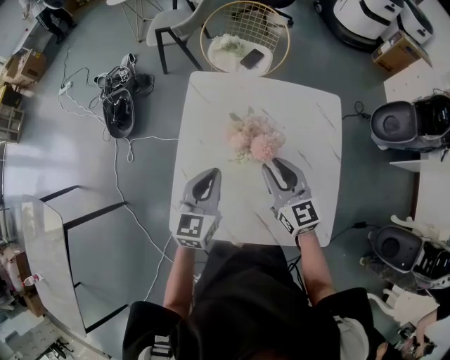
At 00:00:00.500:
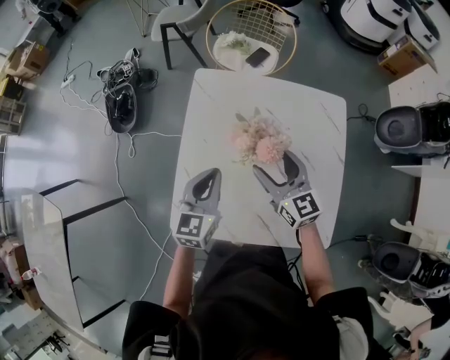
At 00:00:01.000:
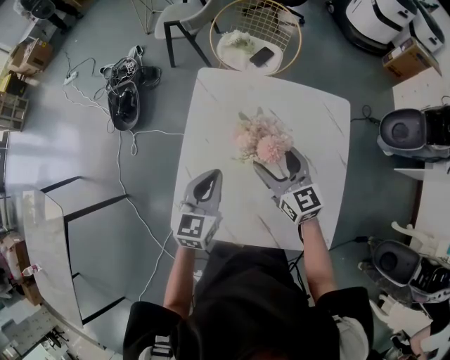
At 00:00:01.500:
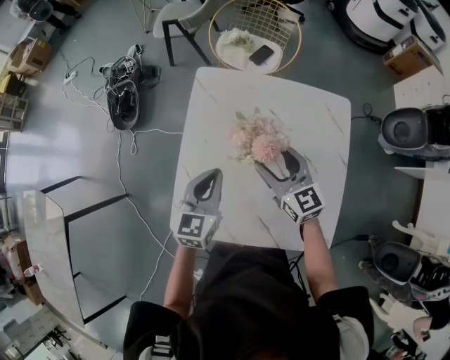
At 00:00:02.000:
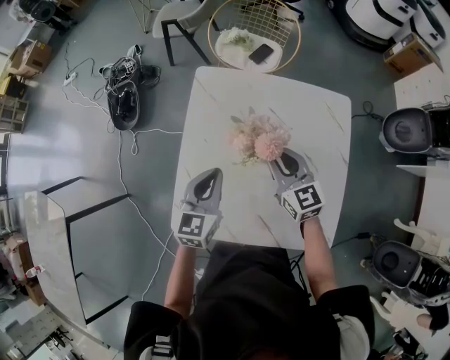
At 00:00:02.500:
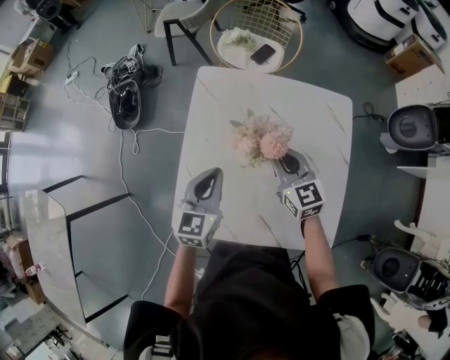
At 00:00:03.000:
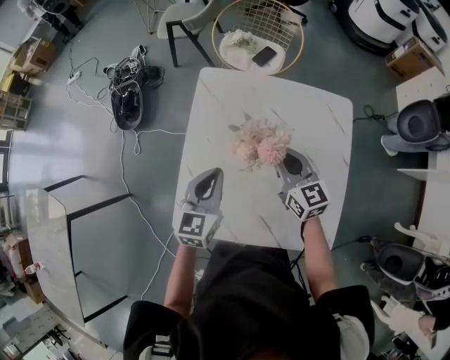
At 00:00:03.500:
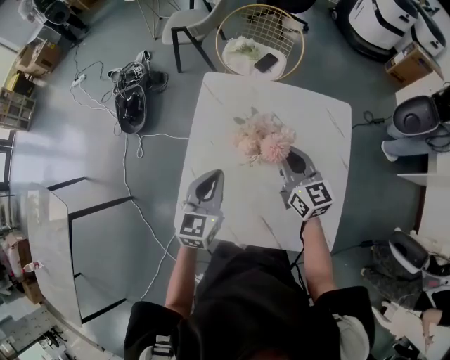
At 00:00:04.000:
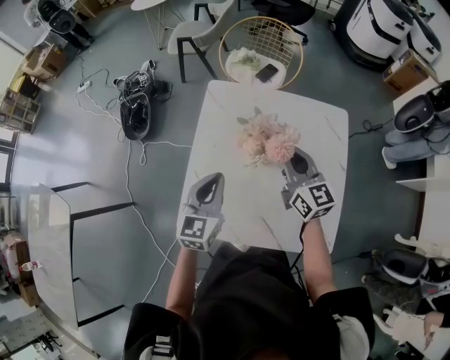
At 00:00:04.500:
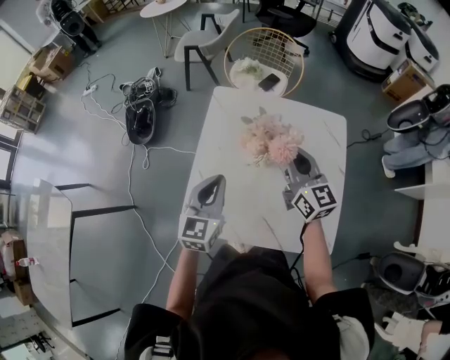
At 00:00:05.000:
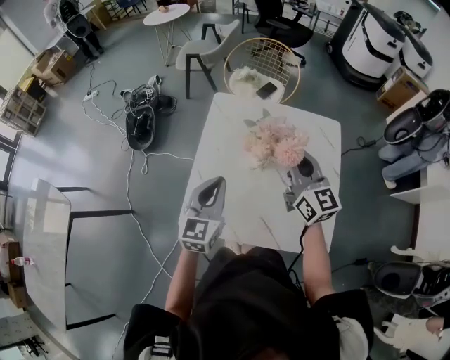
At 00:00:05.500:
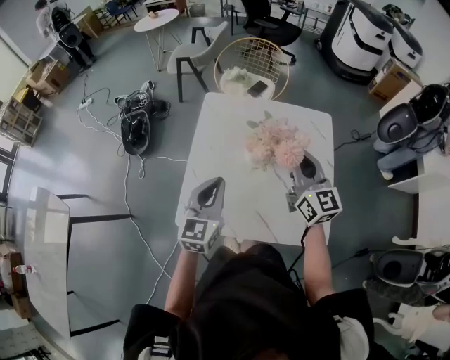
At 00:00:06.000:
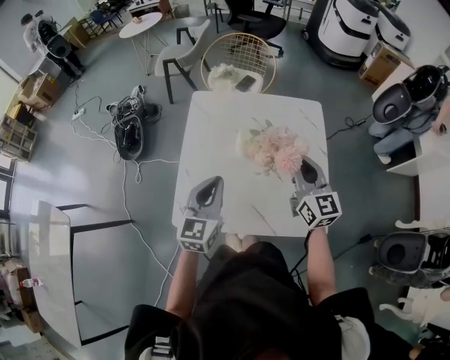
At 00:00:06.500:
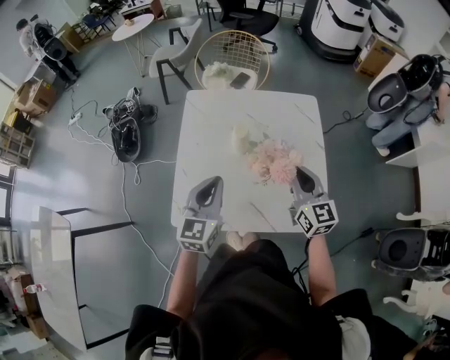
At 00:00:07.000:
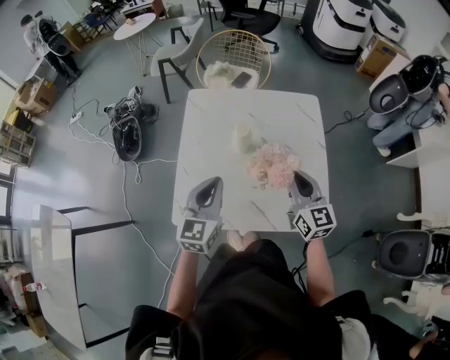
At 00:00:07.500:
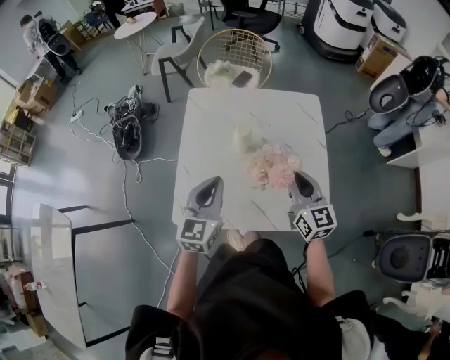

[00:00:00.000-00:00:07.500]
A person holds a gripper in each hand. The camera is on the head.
00:00:00.000 to 00:00:02.000: The right gripper is displaced forward by about 5 cm, and opens and closes again.
00:00:02.000 to 00:00:04.000: The right gripper heads upward, covering roughly 10 cm; the left gripper ends up approximately 5 cm from where it was.
00:00:04.000 to 00:00:05.500: The left gripper goes about 10 cm backward, while the right gripper shifts about 10 cm backward and upward.
00:00:05.500 to 00:00:07.500: The right gripper travels downward, backward and to the right by some 15 cm.

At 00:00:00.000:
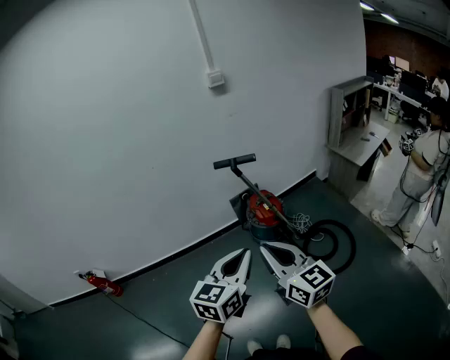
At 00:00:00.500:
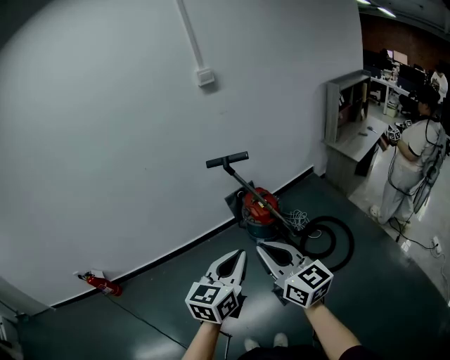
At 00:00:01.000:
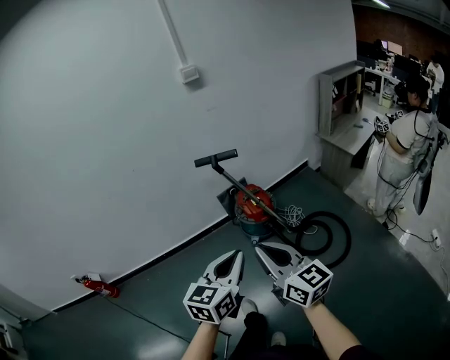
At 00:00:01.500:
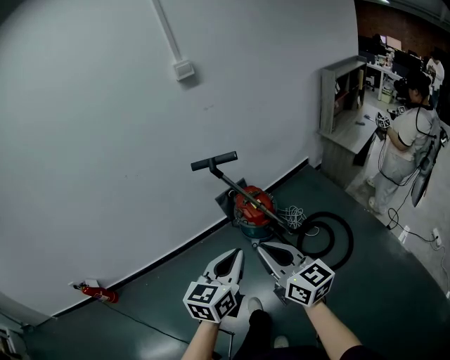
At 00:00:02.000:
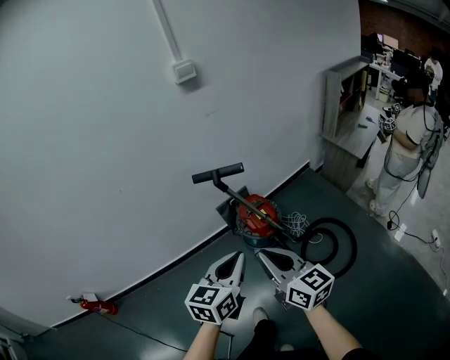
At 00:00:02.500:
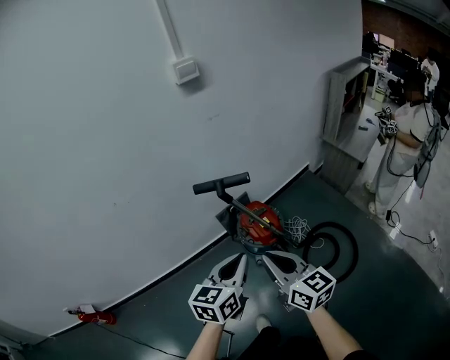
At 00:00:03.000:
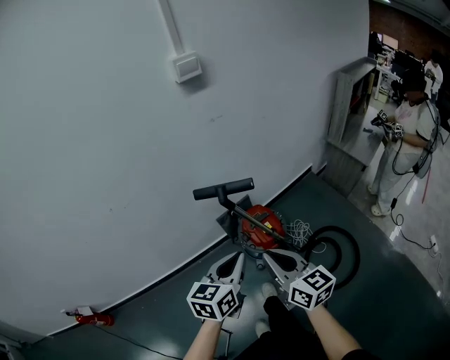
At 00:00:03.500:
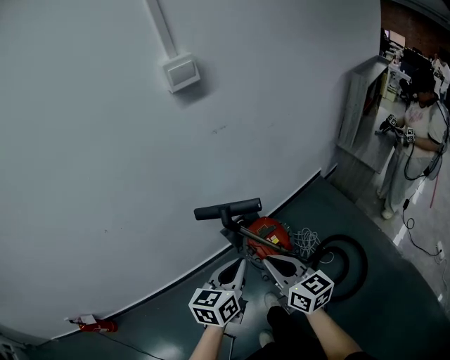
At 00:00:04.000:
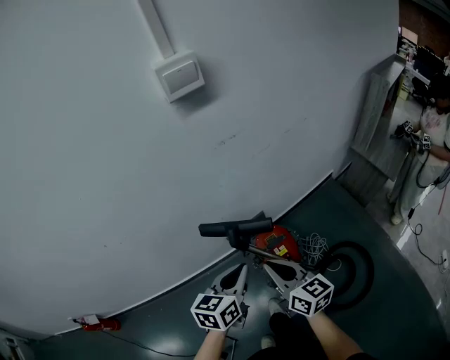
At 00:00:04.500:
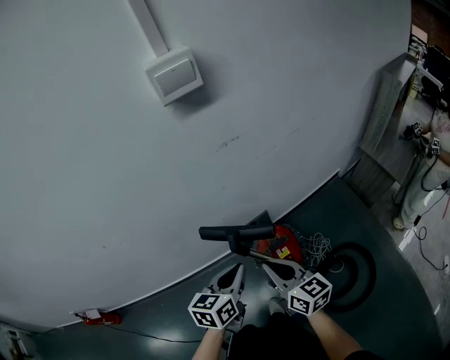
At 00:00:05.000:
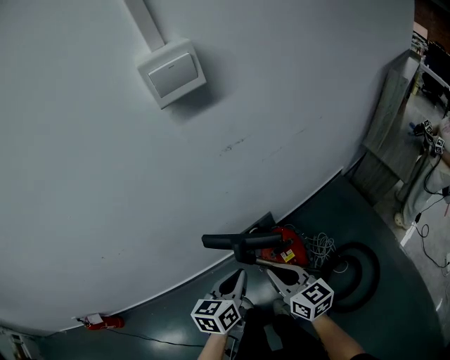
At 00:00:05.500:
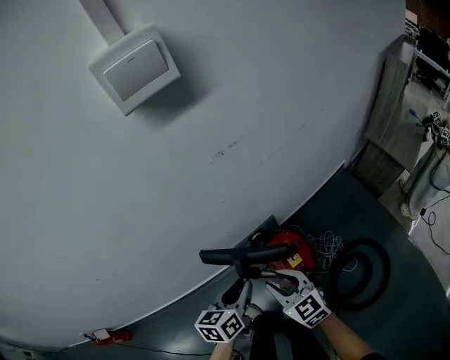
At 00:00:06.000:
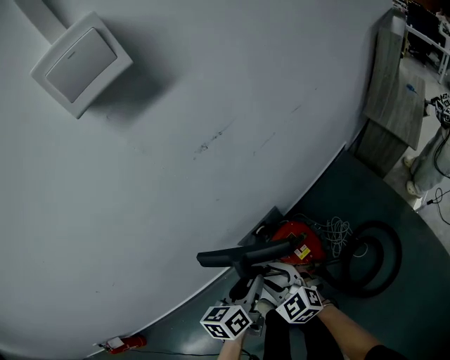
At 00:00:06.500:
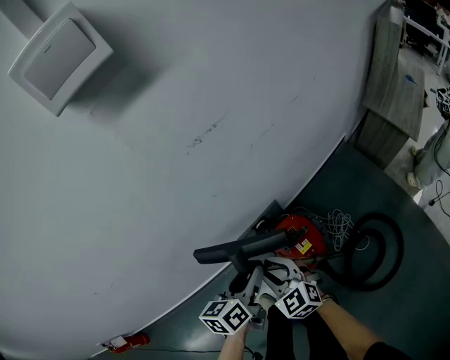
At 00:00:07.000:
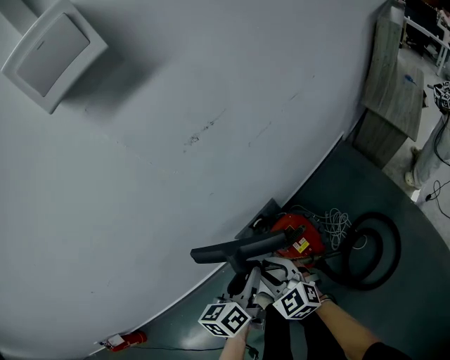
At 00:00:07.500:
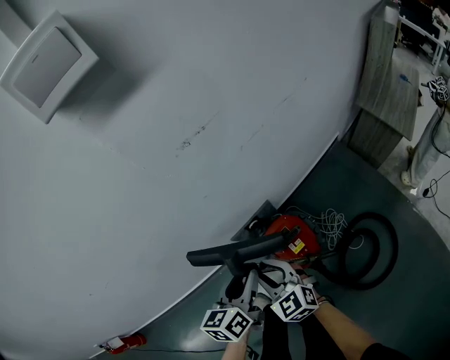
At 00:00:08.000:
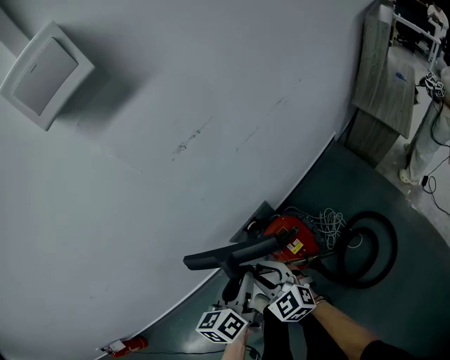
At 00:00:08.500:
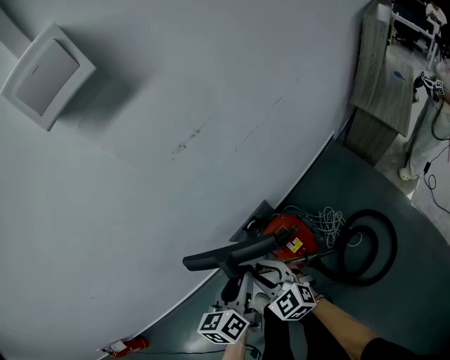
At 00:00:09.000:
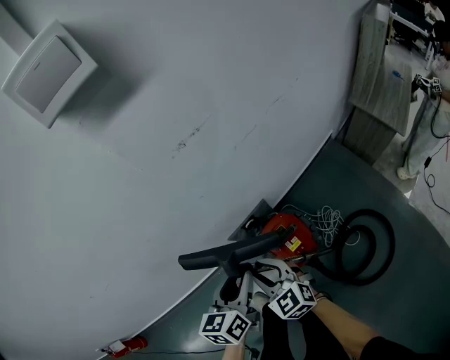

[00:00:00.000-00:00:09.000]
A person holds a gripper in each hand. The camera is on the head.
00:00:00.000 to 00:00:02.000: Both grippers move forward, some 20 cm.
00:00:02.000 to 00:00:04.500: Both grippers travel together forward, roughly 35 cm.
00:00:04.500 to 00:00:07.000: The grippers both shift downward and forward by approximately 15 cm. The right gripper rotates roughly 40 degrees, and opens up; the left gripper opens its fingers.
00:00:07.000 to 00:00:09.000: There are only small adjustments of the grippers.

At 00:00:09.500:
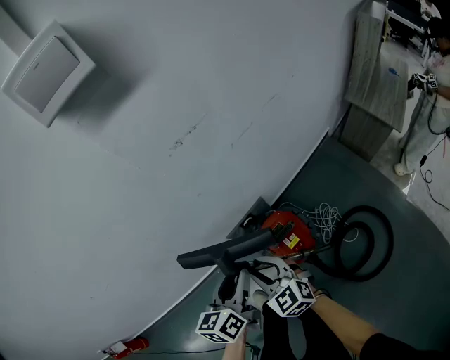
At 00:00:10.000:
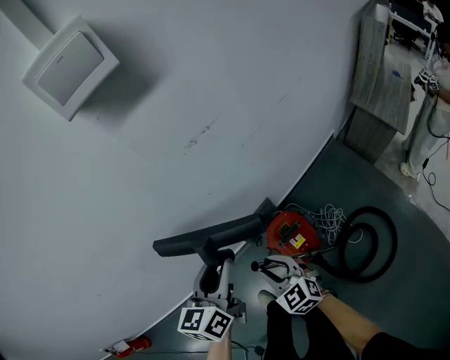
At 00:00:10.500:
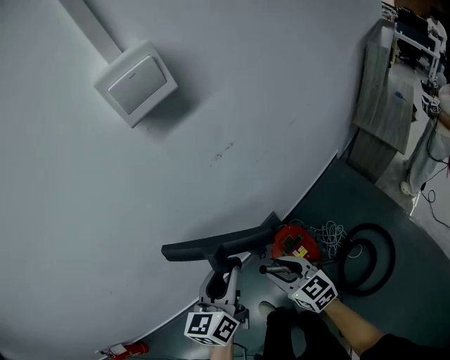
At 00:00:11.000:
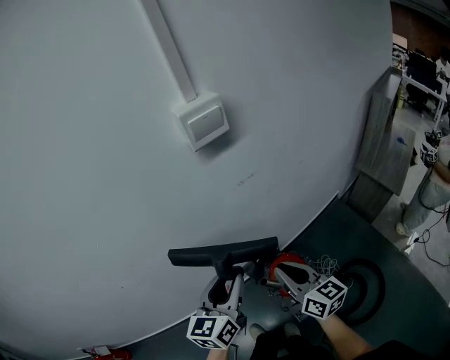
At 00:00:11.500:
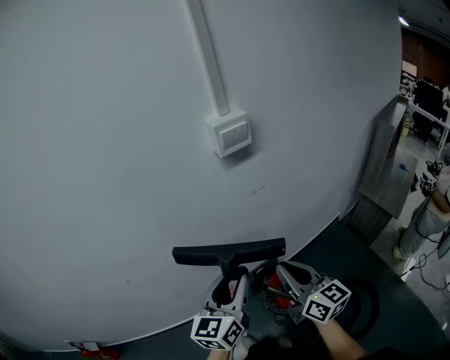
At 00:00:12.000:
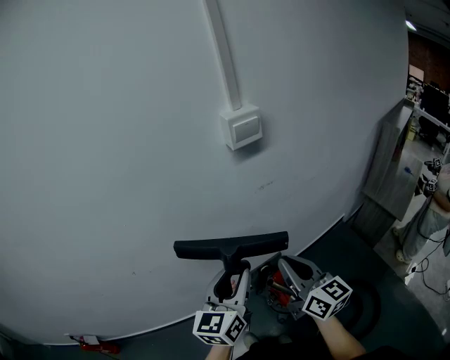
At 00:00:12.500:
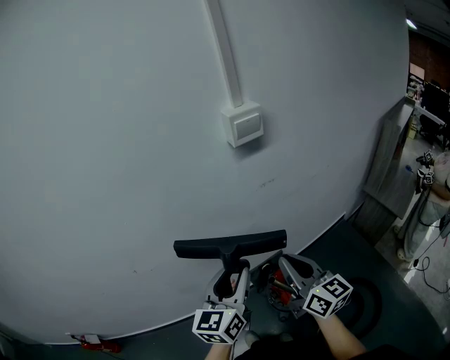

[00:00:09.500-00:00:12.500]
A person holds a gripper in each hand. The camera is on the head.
00:00:09.500 to 00:00:11.000: The two grippers go roughly 20 cm upward. The right gripper changes its angle by about 40 degrees, and closes; the left gripper swivels about 20 degrees.
00:00:11.000 to 00:00:12.500: The right gripper is displaced upward by about 10 cm, while the left gripper is displaced upward by some 5 cm.

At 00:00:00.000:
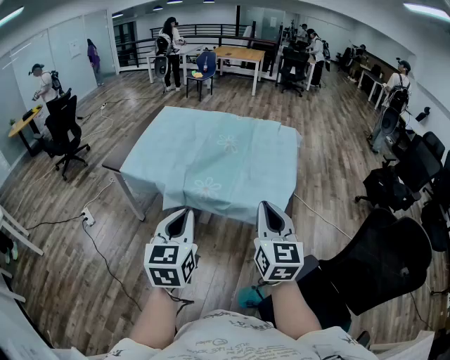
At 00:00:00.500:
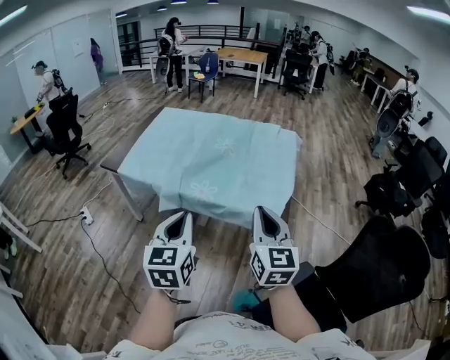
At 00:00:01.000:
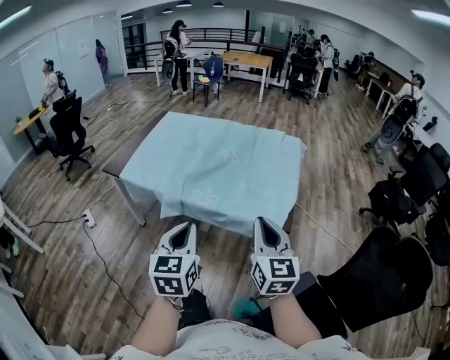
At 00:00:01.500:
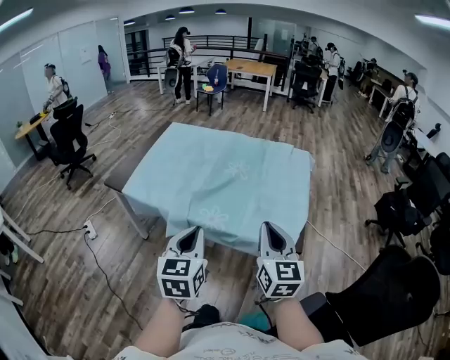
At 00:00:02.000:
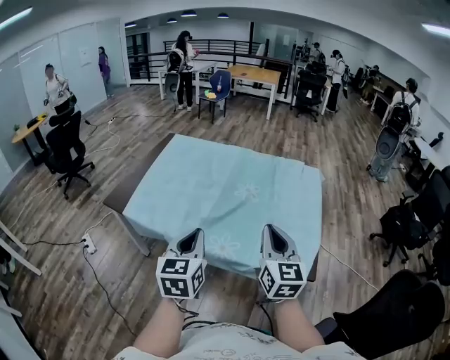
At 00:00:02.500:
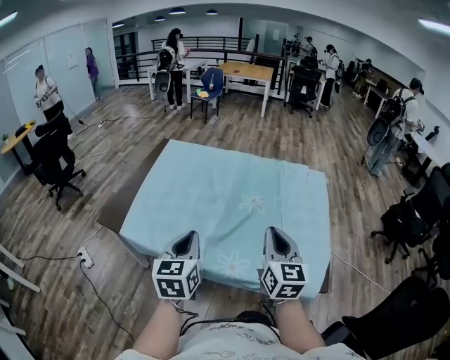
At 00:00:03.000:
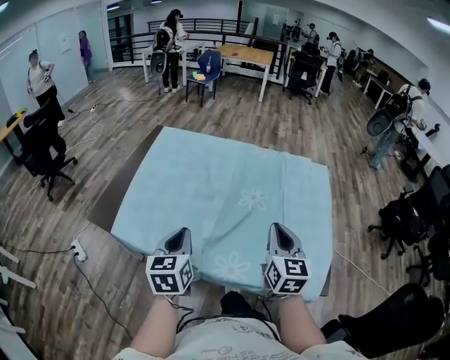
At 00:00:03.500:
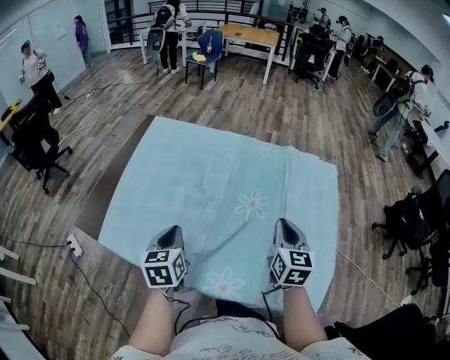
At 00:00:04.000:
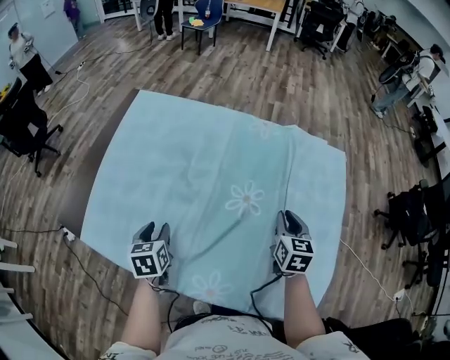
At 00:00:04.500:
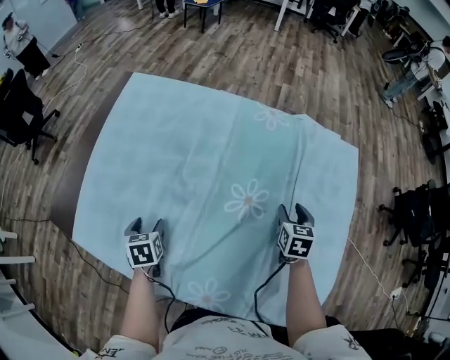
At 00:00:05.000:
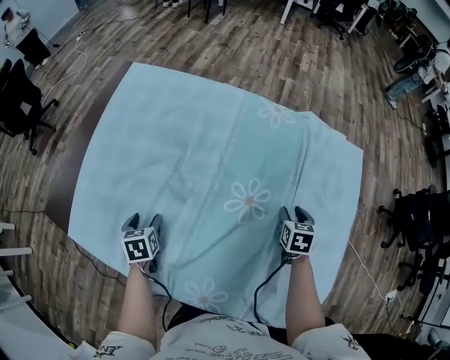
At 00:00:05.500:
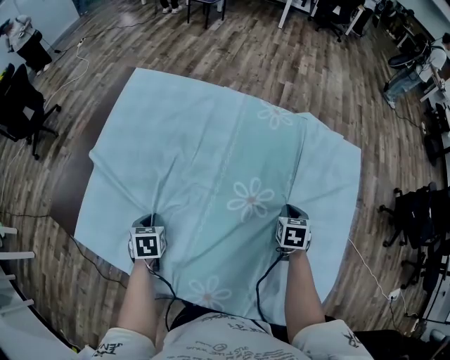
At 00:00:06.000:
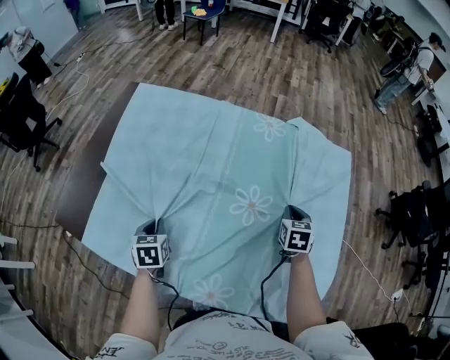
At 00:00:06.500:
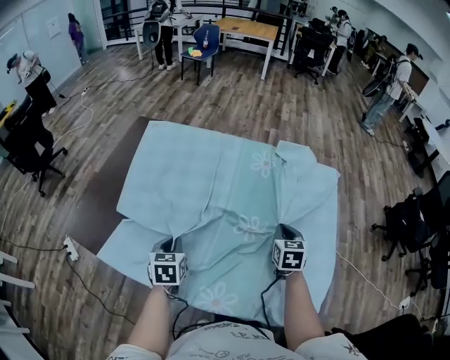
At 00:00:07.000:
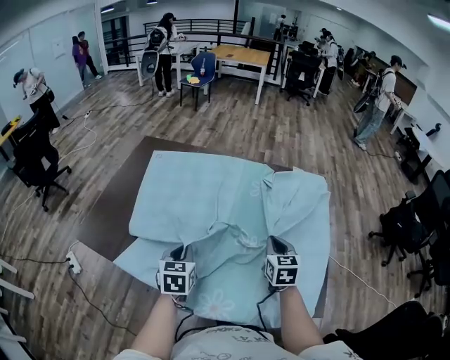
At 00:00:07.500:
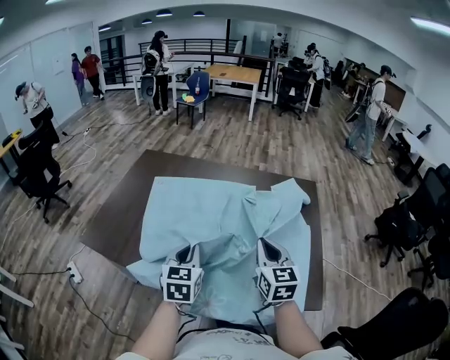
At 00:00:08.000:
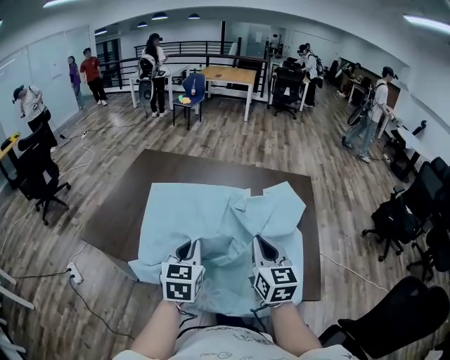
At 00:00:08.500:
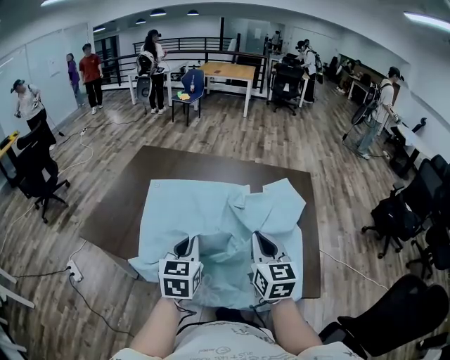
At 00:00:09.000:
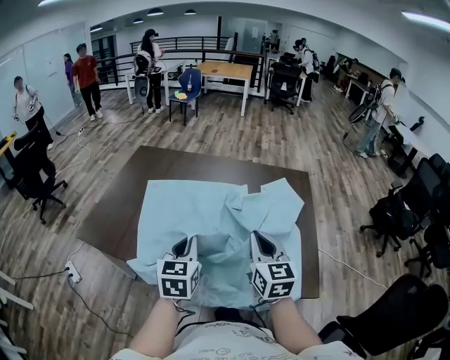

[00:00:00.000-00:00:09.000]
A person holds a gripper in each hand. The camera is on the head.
00:00:00.000 to 00:00:02.000: The two grippers go roughly 25 cm forward.
00:00:02.000 to 00:00:04.500: The two grippers travel together, forward, approximately 40 cm. Both grippers move downward, about 30 cm. The left gripper points its fingers approximately 40 degrees further downward, and opens, while the right gripper angles its fingers downward, by about 40 degrees, and opens up.
00:00:04.500 to 00:00:07.000: The right gripper moves backward, upward and to the left, roughly 25 cm, and closes, while the left gripper travels upward, backward and to the right by some 20 cm, changes its angle by some 30 degrees, and closes.
00:00:07.000 to 00:00:09.000: The right gripper shifts roughly 20 cm backward, upward and to the left. The left gripper is displaced upward and backward by roughly 15 cm.
